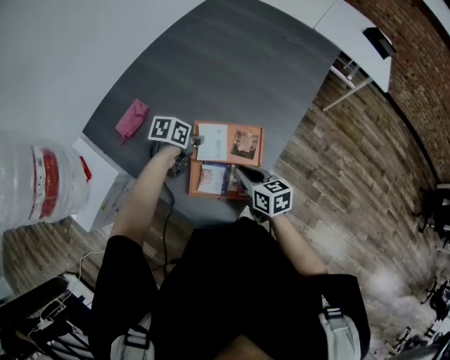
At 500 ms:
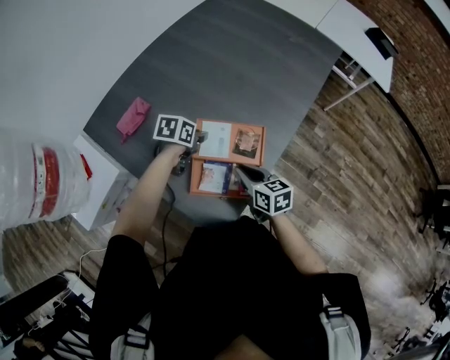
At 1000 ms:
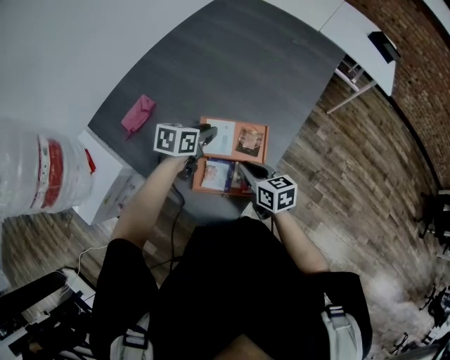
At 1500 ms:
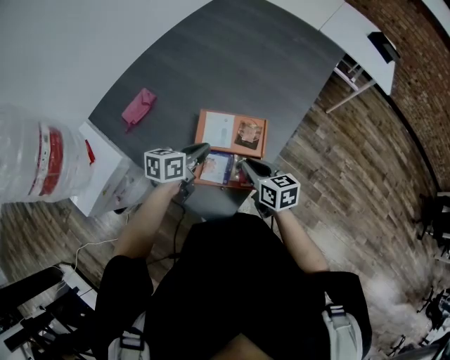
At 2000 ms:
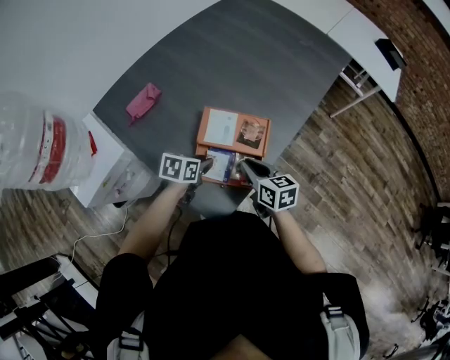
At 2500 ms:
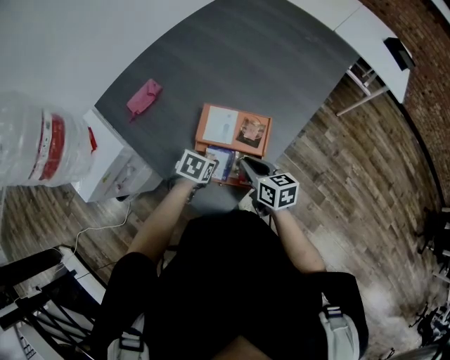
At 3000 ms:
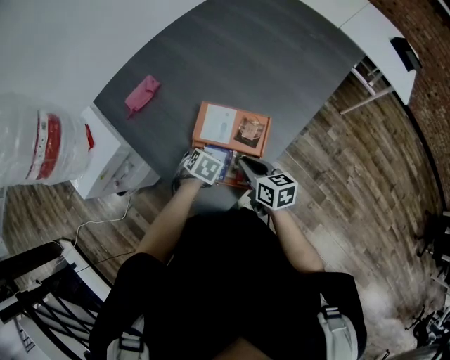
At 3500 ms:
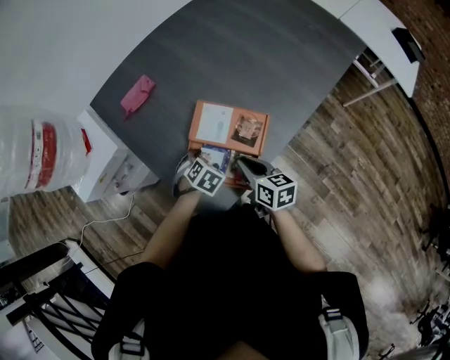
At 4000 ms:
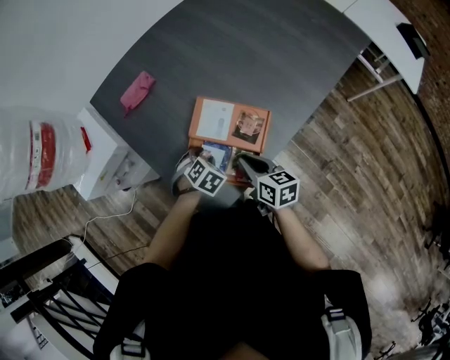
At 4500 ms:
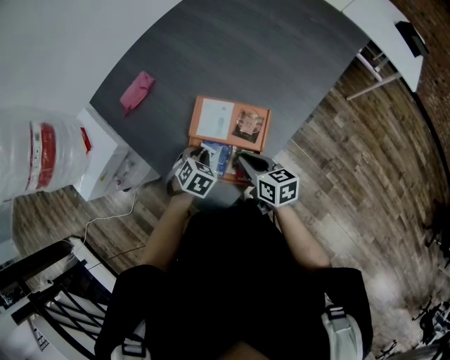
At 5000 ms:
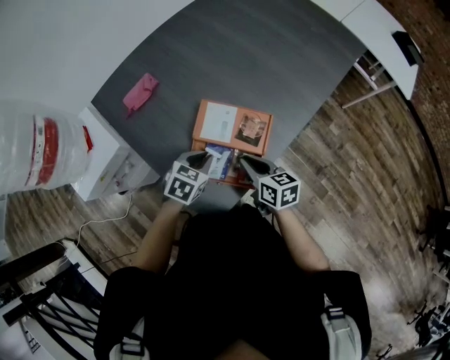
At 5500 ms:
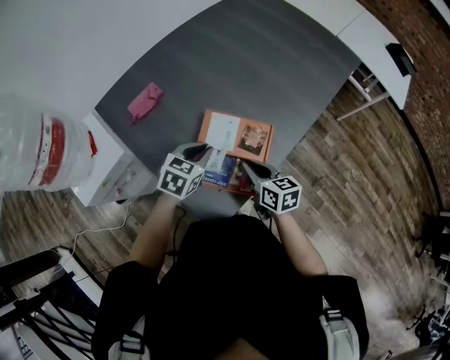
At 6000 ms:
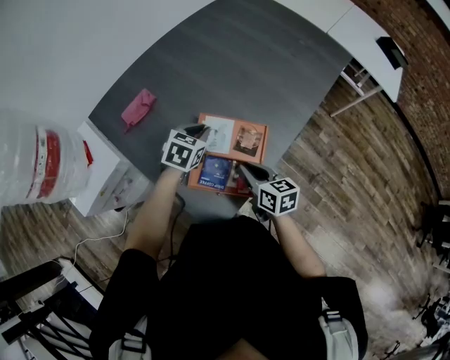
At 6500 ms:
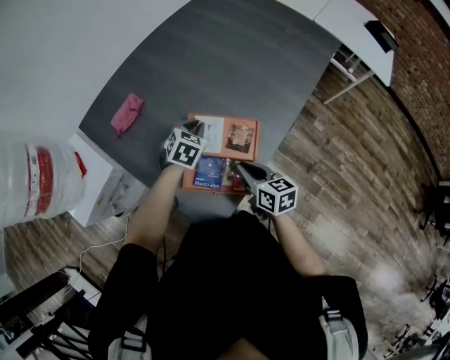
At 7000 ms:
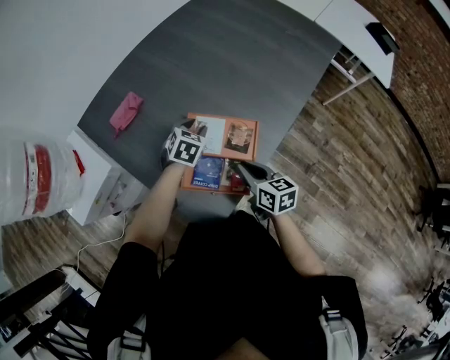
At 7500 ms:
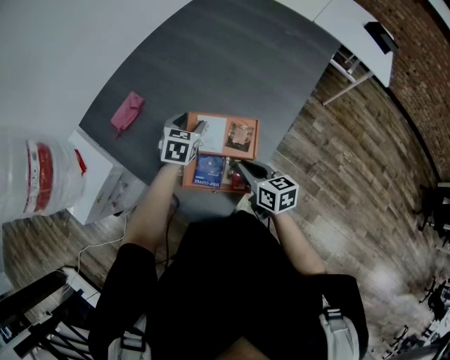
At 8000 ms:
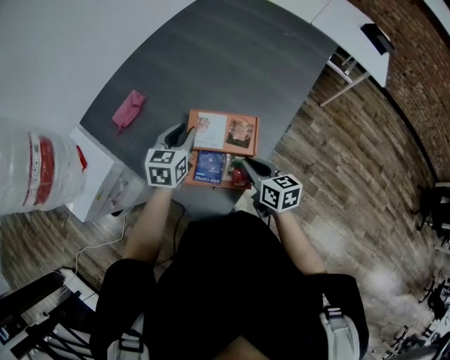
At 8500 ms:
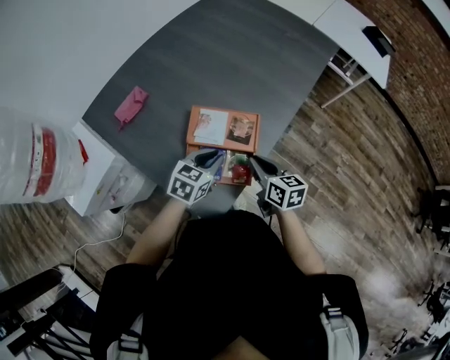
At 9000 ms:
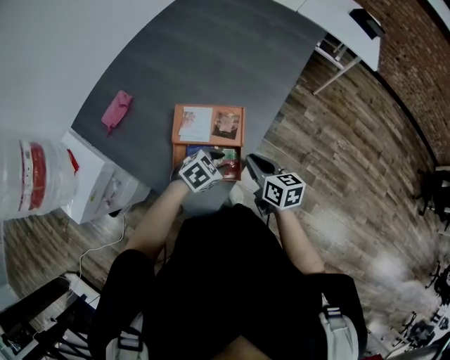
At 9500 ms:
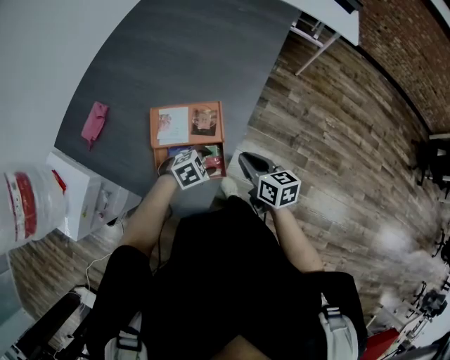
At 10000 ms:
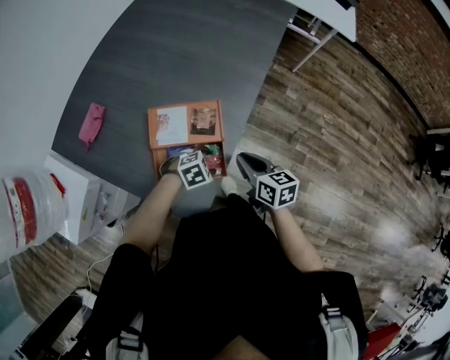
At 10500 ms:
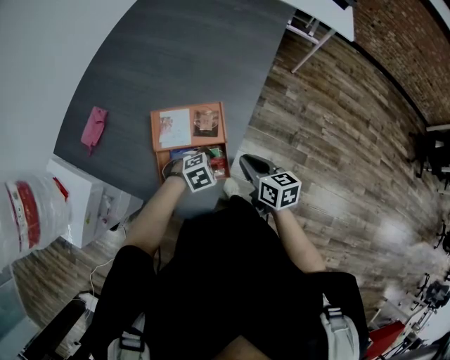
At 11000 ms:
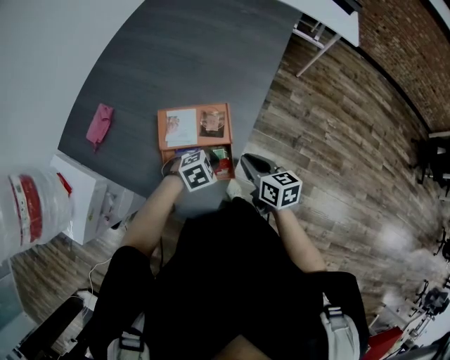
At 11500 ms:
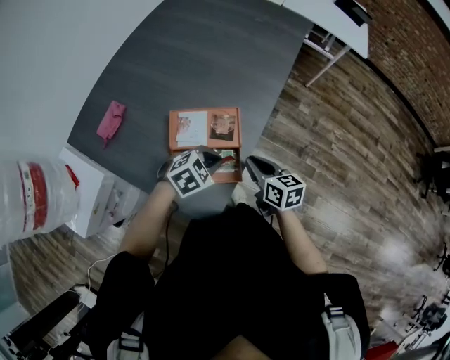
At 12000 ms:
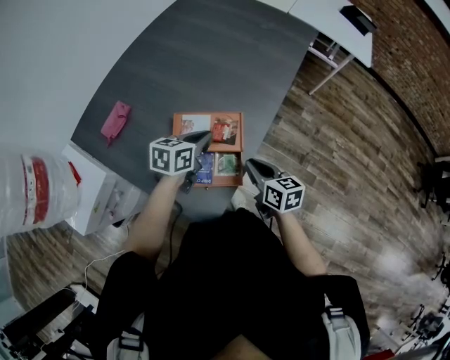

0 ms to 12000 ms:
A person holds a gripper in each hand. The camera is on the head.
0 ms to 2000 ms: The left gripper is displaced backward by roughly 10 cm.
2000 ms to 4000 ms: The left gripper travels downward by approximately 5 cm, swivels approximately 50 degrees, and opens, then closes once more.
4000 ms to 6000 ms: The left gripper moves upward and forward, about 15 cm, turns by roughly 30 degrees, and closes.
6000 ms to 8000 ms: The left gripper swivels some 20 degrees, and opens, then closes again.
8000 ms to 10000 ms: The left gripper changes place by approximately 30 cm, tips its fingers downward by approximately 30 degrees, and opens its fingers, while the right gripper moves some 10 cm.
10000 ms to 12000 ms: The left gripper travels upward, to the left and forward by some 20 cm, angles its fingers upward, by some 30 degrees, and closes its fingers.

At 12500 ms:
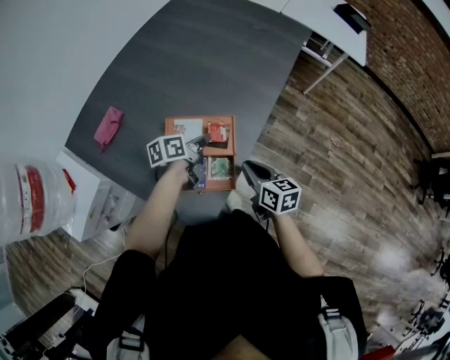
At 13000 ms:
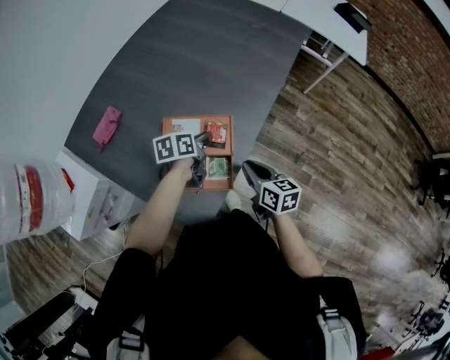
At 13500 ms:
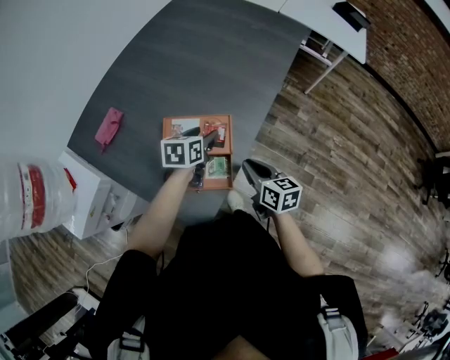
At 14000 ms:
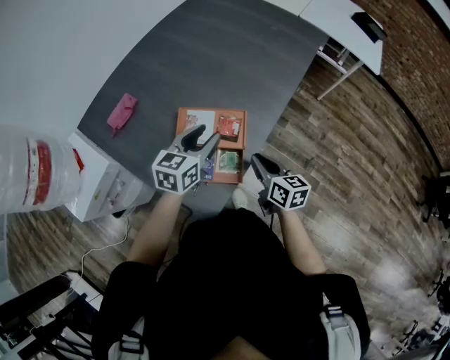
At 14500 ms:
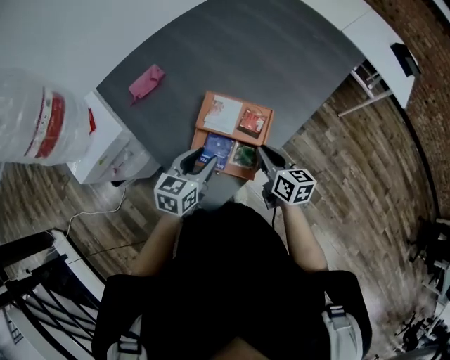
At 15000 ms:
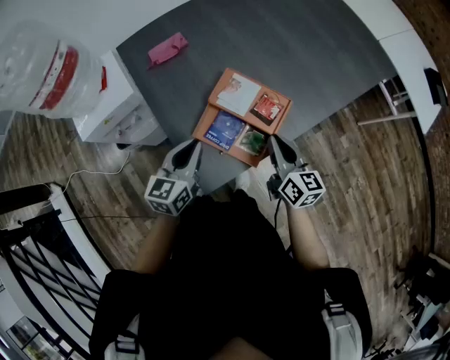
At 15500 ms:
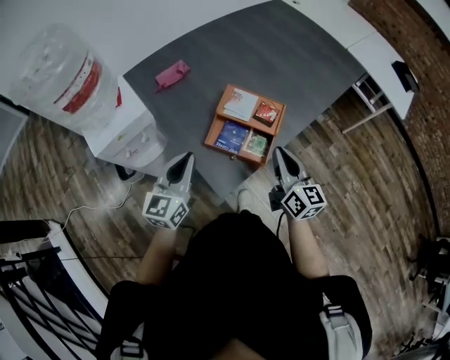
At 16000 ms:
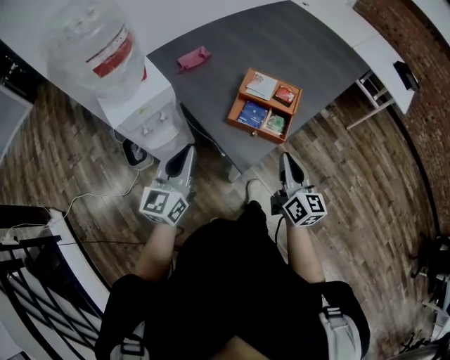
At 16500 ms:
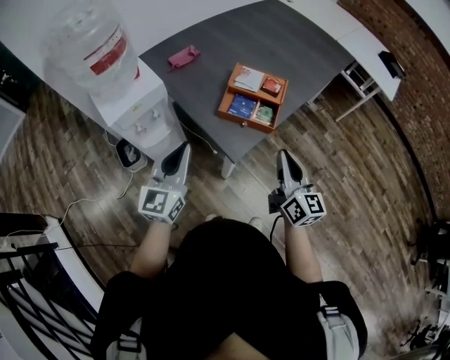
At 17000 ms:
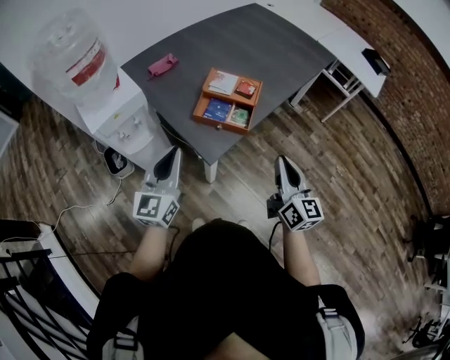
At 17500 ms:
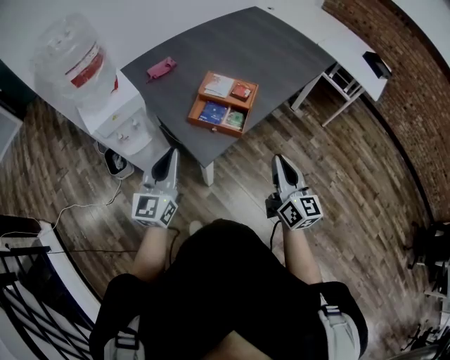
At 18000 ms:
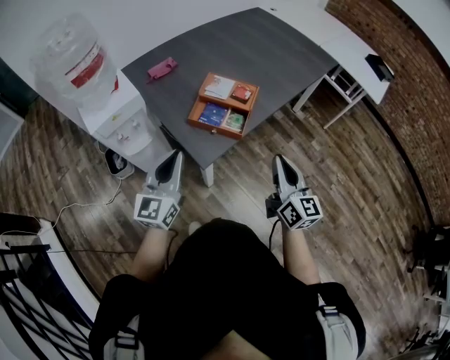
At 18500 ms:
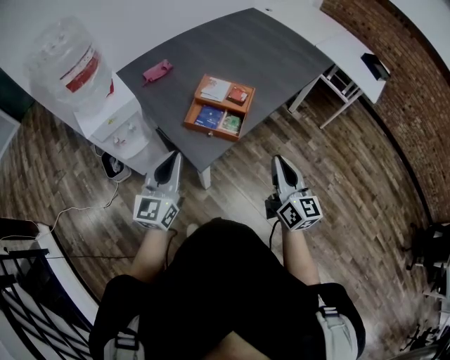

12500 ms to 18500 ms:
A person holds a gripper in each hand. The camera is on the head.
12500 ms to 14500 ms: The left gripper goes some 15 cm backward and to the left, changes its angle by about 40 degrees, and opens.
14500 ms to 16500 ms: The right gripper moves backward and upward, approximately 25 cm, and changes its angle by approximately 30 degrees, while the left gripper travels backward, to the left and upward by approximately 25 cm, changes its angle by about 40 degrees, and closes its fingers.
16500 ms to 18500 ms: The two grippers go approximately 10 cm to the right.

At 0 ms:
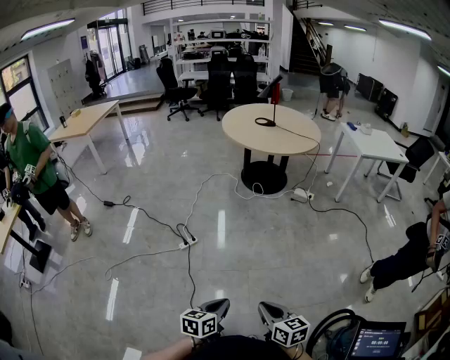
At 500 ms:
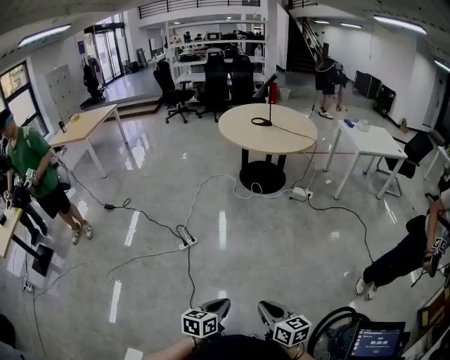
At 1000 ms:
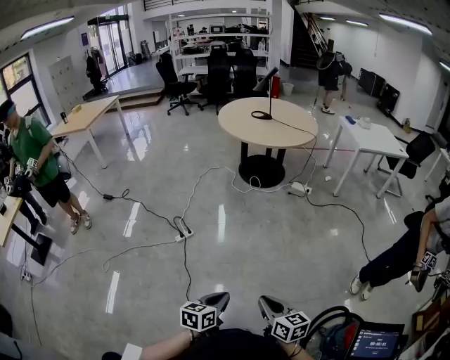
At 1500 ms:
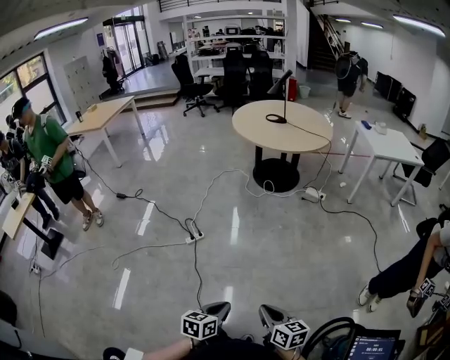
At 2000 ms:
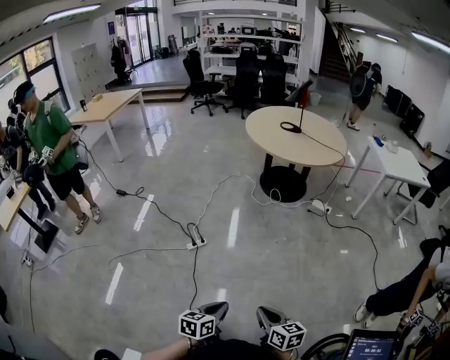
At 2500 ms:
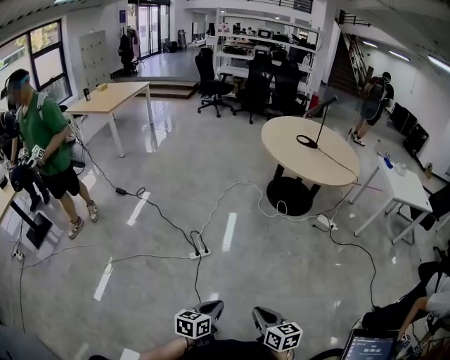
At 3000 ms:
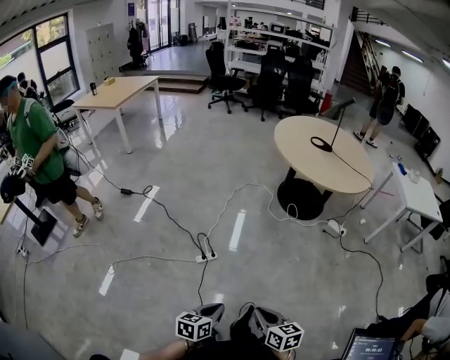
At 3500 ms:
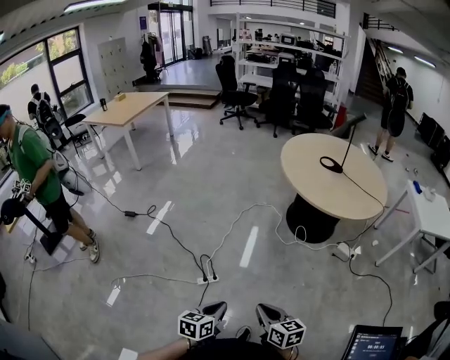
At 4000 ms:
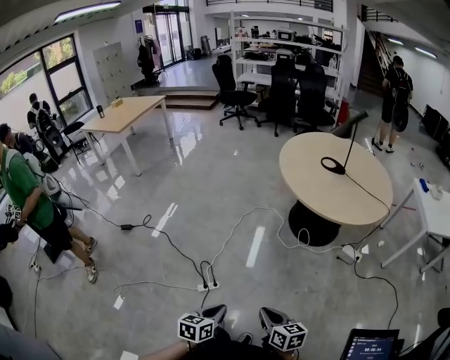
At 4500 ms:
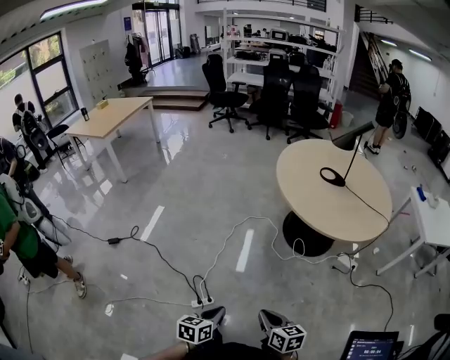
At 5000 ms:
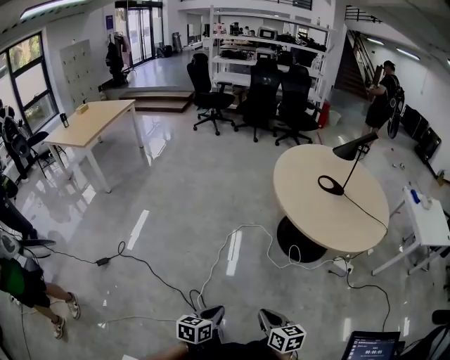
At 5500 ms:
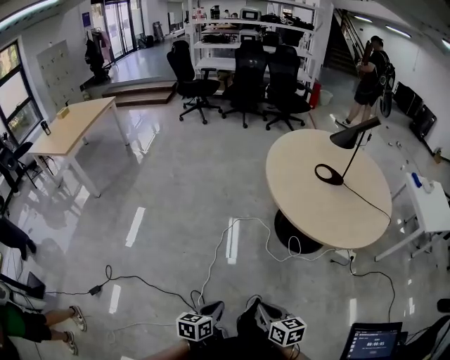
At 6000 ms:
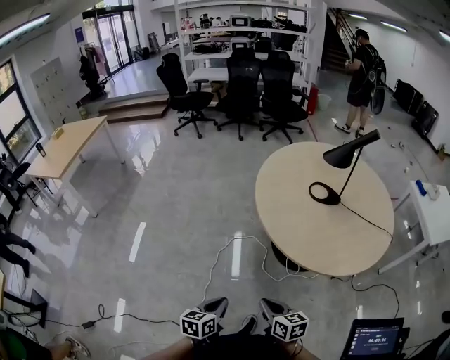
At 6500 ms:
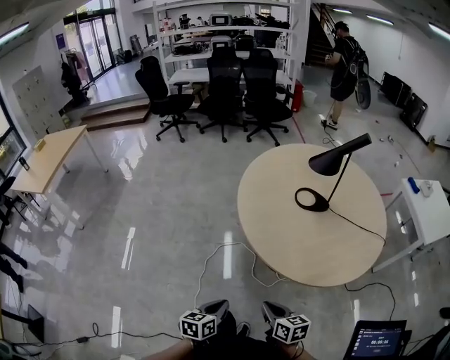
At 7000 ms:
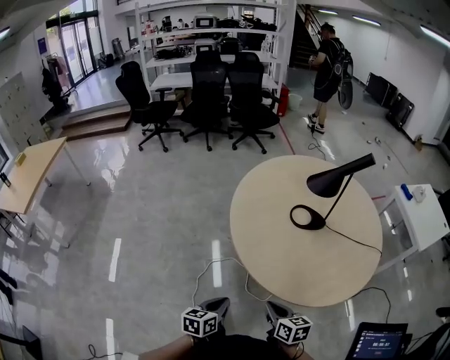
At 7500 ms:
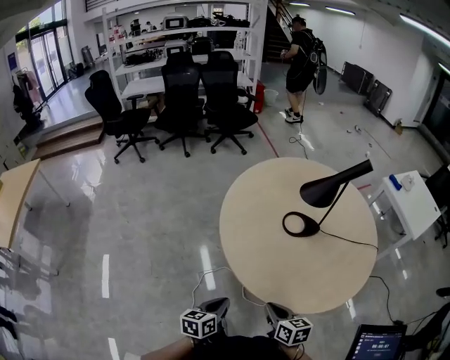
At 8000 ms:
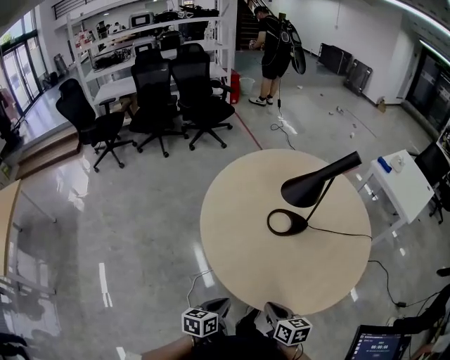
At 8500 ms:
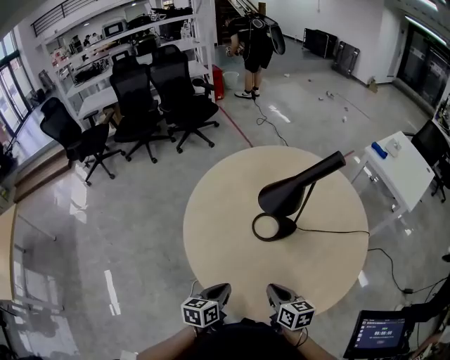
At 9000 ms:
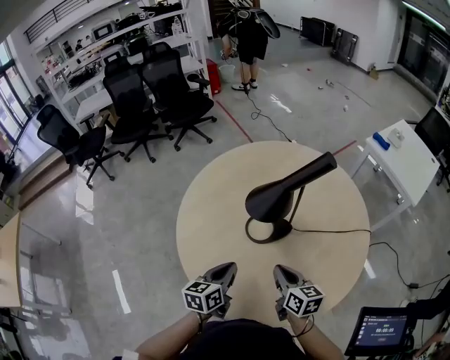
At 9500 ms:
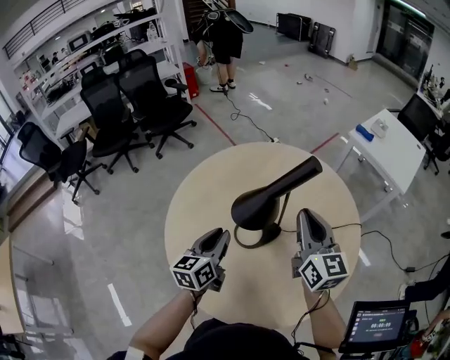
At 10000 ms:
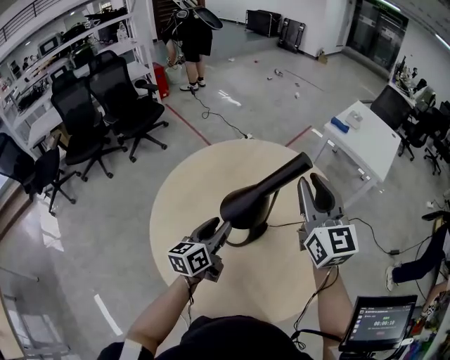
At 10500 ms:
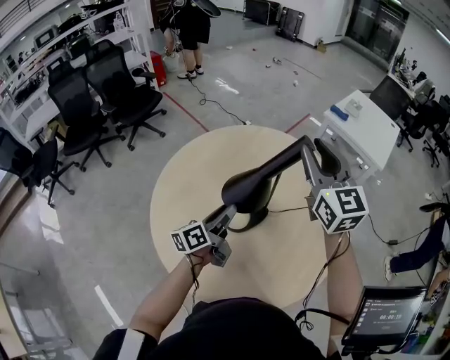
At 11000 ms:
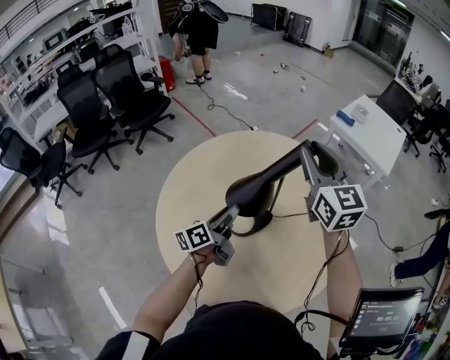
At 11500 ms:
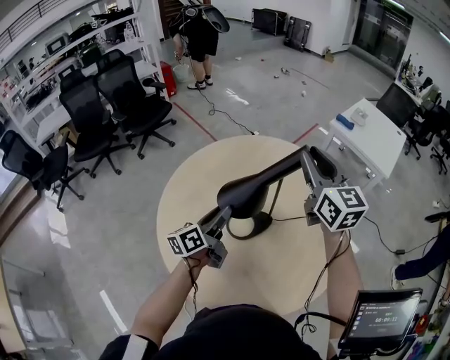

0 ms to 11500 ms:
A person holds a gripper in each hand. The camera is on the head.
0 ms to 2000 ms: Both grippers travel together forward, about 5 cm.
2000 ms to 4000 ms: The two grippers go about 35 cm forward.
4000 ms to 6000 ms: Both grippers are carried forward, about 40 cm.
6000 ms to 7500 ms: The two grippers go approximately 25 cm forward. The right gripper swivels about 20 degrees.
7500 ms to 9500 ms: The left gripper heads forward, covering approximately 35 cm, and rotates about 20 degrees. The right gripper travels forward, upward and to the right by approximately 50 cm, and angles its fingers upward, by roughly 30 degrees.
9500 ms to 11500 ms: The left gripper moves forward, about 5 cm, changes its angle by approximately 30 degrees, and opens. The right gripper goes some 10 cm upward and forward, and opens its fingers.
